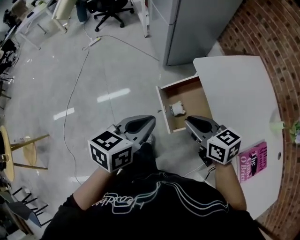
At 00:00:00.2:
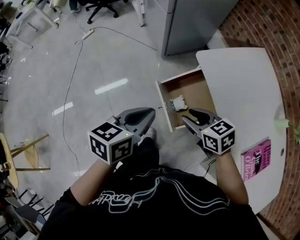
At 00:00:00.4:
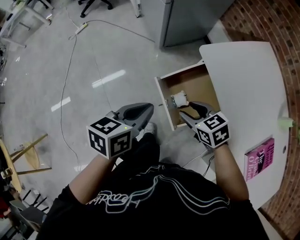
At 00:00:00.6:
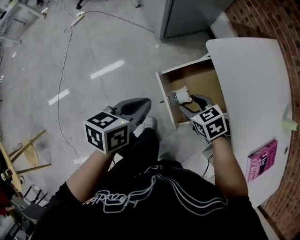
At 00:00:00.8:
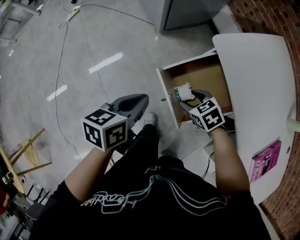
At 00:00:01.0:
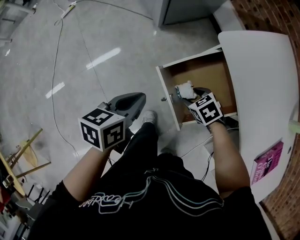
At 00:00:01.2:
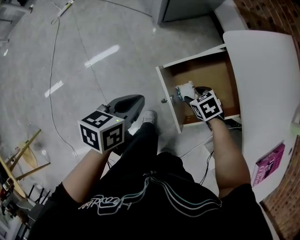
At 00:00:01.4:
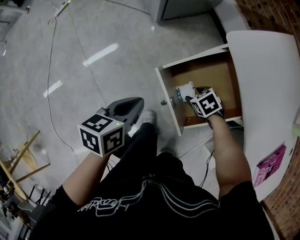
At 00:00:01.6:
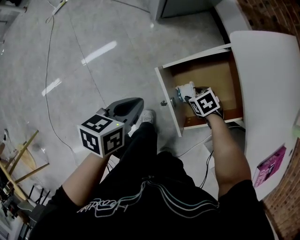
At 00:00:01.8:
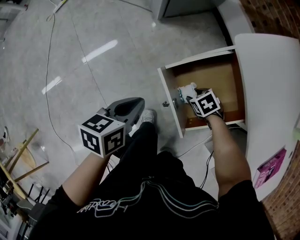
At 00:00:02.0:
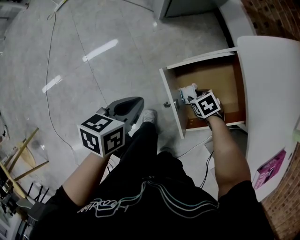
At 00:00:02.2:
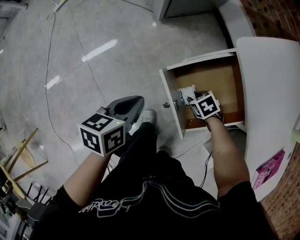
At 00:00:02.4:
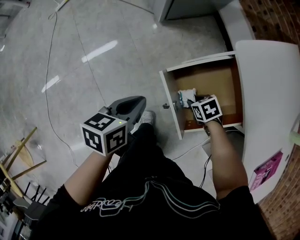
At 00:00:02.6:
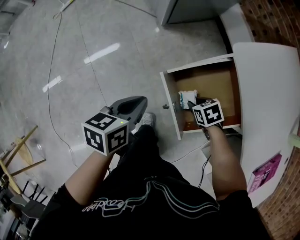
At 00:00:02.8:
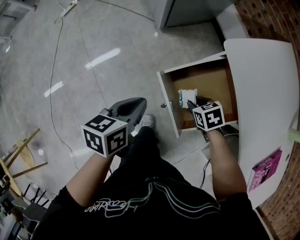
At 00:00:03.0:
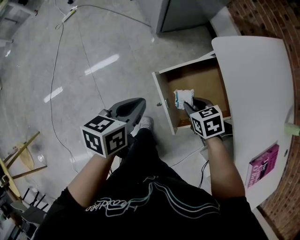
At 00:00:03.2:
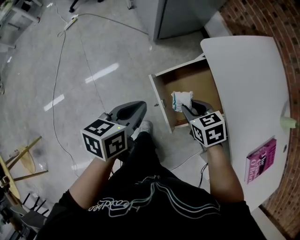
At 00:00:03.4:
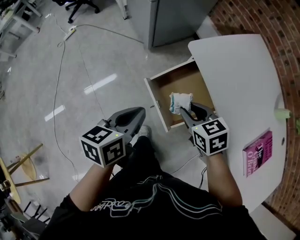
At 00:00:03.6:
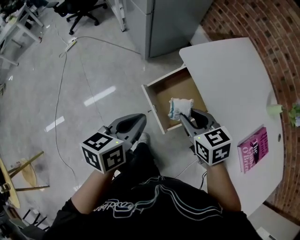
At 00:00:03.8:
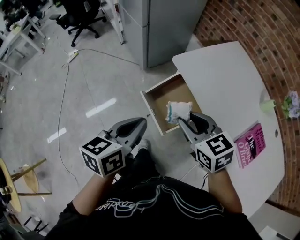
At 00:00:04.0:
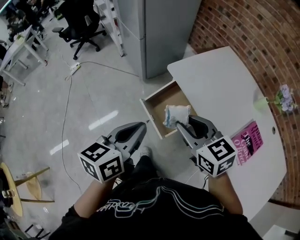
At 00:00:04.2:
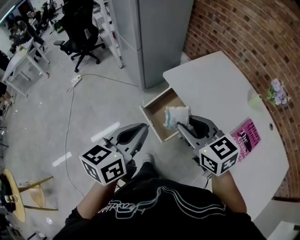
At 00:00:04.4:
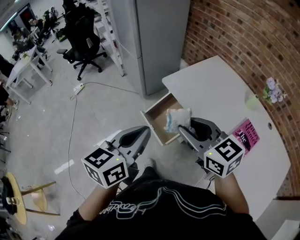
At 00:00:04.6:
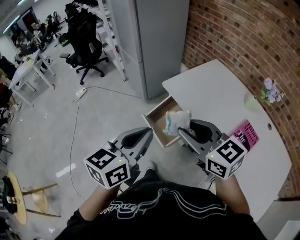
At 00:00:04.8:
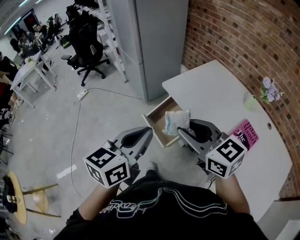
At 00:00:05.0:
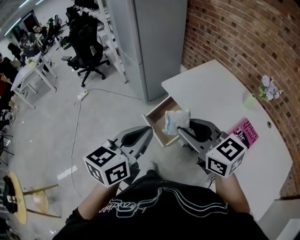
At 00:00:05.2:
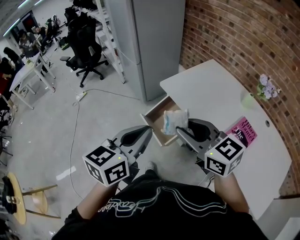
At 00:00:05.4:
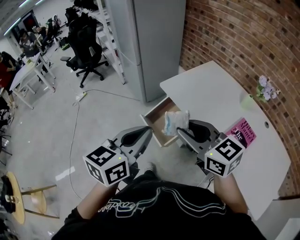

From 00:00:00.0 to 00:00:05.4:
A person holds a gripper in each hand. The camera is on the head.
From 00:00:00.0 to 00:00:01.4: Both grippers travel together downward, roughly 35 cm. The right gripper tilts its fingers approximately 50 degrees downward, and opens, while the left gripper rotates about 20 degrees.
From 00:00:01.4 to 00:00:02.8: The right gripper moves upward, approximately 5 cm, and closes.
From 00:00:02.8 to 00:00:04.0: The right gripper shifts about 40 cm upward, and tips its fingers upward by some 40 degrees; the left gripper goes about 35 cm upward and backward, and swivels about 20 degrees.
From 00:00:04.0 to 00:00:05.4: The right gripper heads backward and upward, covering some 15 cm; the left gripper heads upward, backward and to the right, covering approximately 15 cm.

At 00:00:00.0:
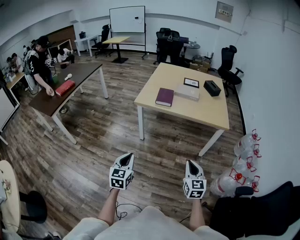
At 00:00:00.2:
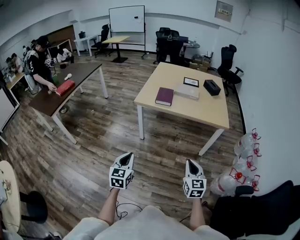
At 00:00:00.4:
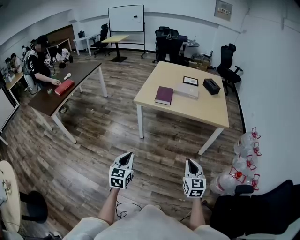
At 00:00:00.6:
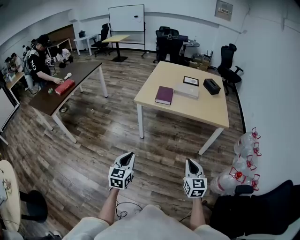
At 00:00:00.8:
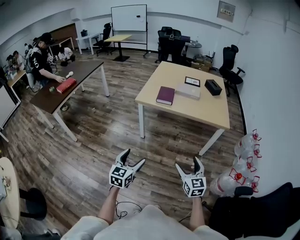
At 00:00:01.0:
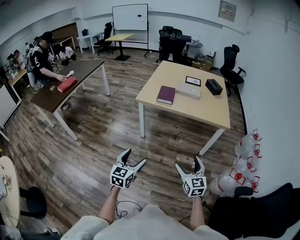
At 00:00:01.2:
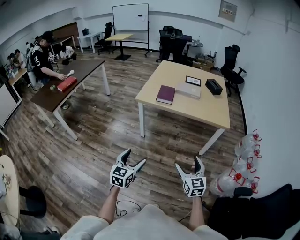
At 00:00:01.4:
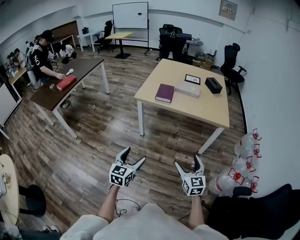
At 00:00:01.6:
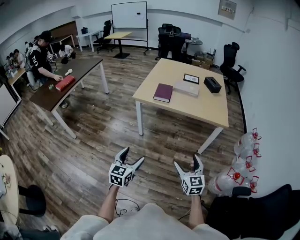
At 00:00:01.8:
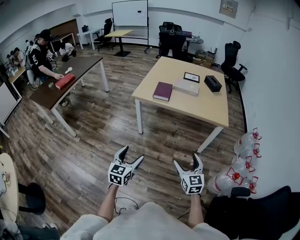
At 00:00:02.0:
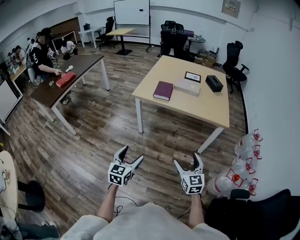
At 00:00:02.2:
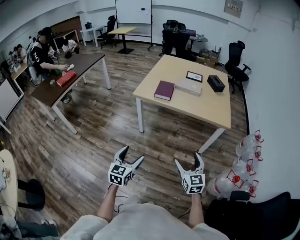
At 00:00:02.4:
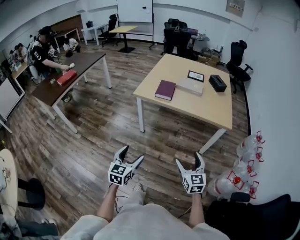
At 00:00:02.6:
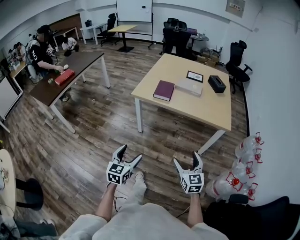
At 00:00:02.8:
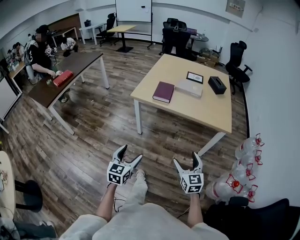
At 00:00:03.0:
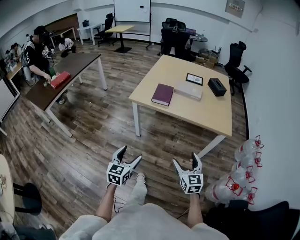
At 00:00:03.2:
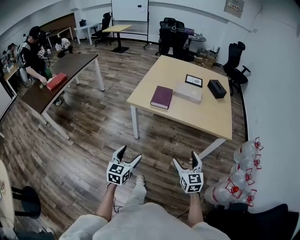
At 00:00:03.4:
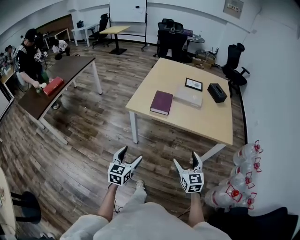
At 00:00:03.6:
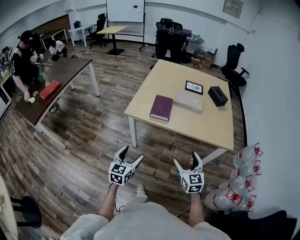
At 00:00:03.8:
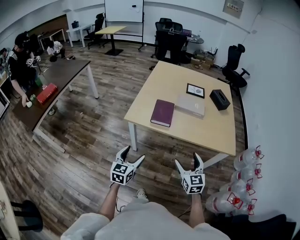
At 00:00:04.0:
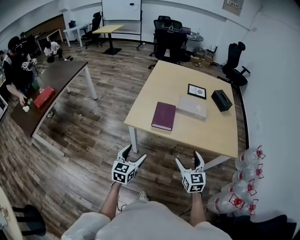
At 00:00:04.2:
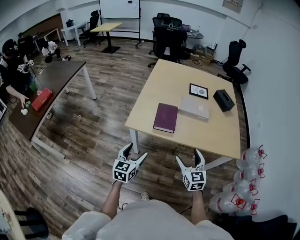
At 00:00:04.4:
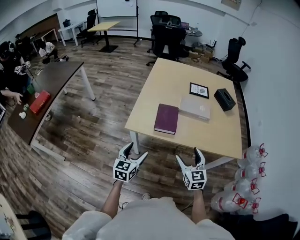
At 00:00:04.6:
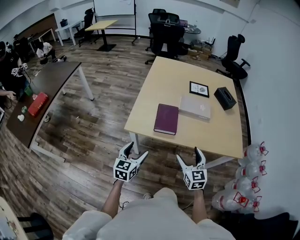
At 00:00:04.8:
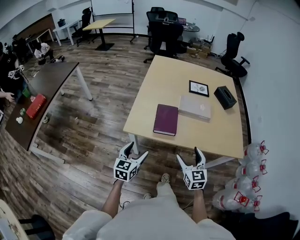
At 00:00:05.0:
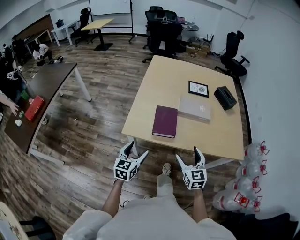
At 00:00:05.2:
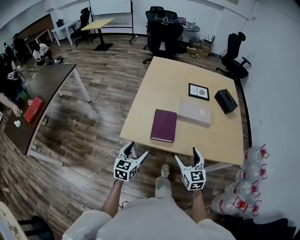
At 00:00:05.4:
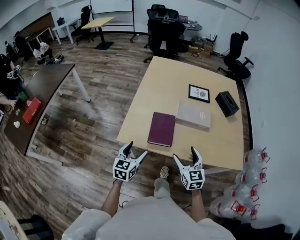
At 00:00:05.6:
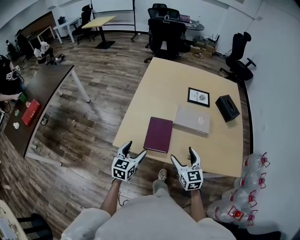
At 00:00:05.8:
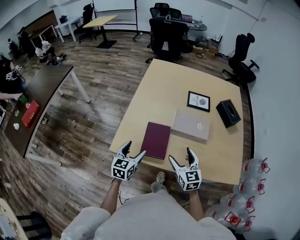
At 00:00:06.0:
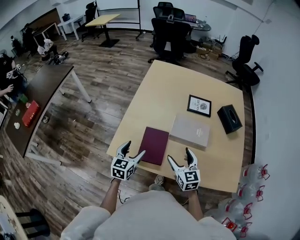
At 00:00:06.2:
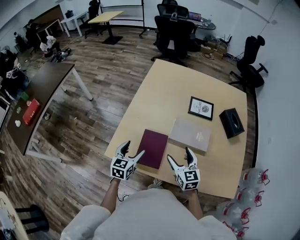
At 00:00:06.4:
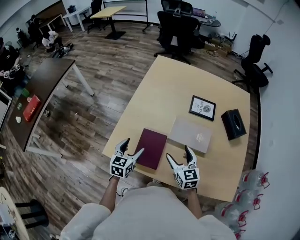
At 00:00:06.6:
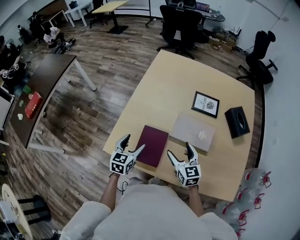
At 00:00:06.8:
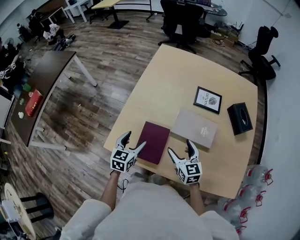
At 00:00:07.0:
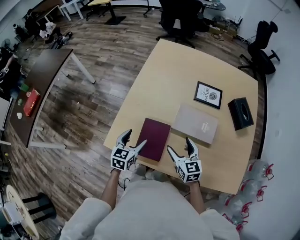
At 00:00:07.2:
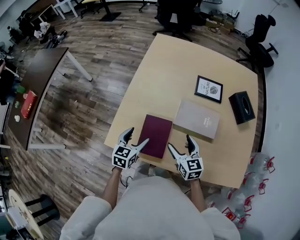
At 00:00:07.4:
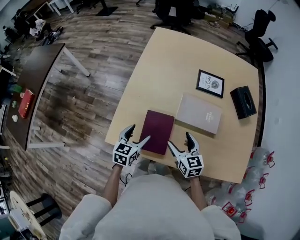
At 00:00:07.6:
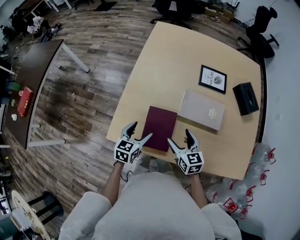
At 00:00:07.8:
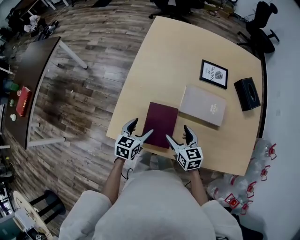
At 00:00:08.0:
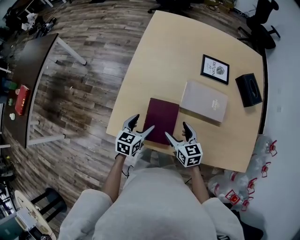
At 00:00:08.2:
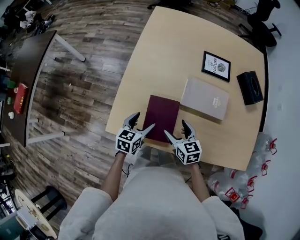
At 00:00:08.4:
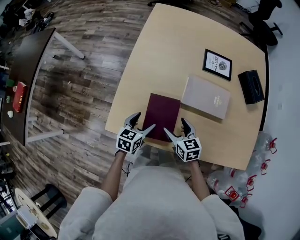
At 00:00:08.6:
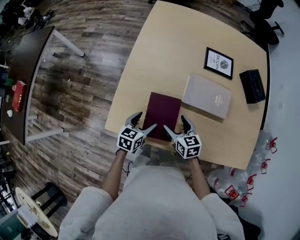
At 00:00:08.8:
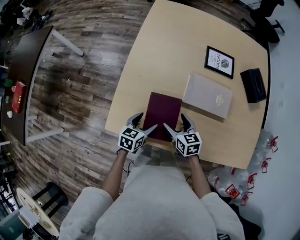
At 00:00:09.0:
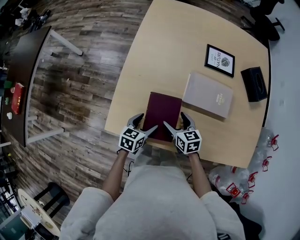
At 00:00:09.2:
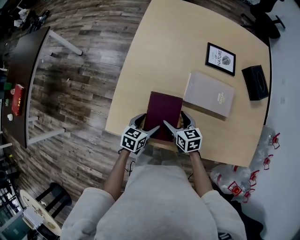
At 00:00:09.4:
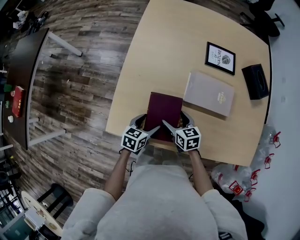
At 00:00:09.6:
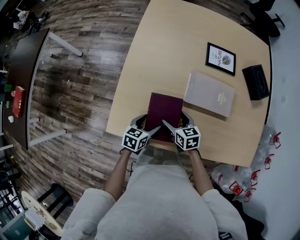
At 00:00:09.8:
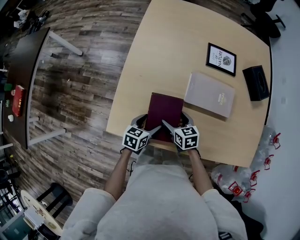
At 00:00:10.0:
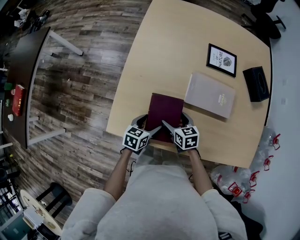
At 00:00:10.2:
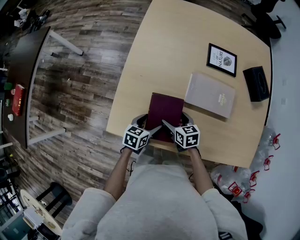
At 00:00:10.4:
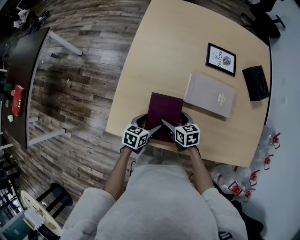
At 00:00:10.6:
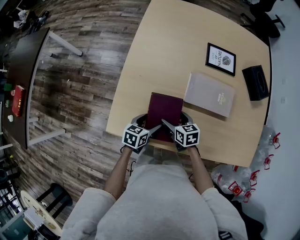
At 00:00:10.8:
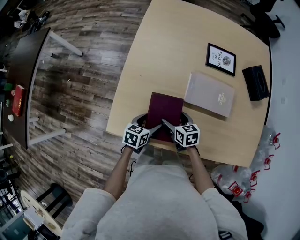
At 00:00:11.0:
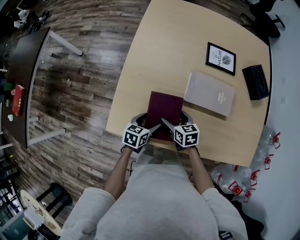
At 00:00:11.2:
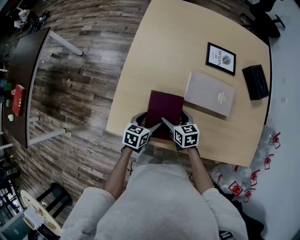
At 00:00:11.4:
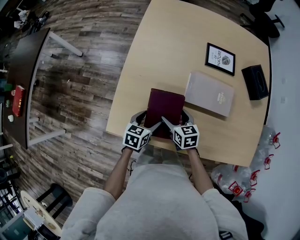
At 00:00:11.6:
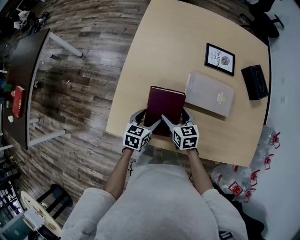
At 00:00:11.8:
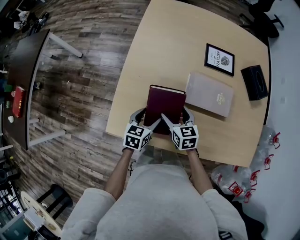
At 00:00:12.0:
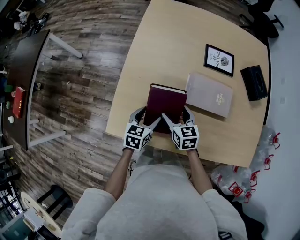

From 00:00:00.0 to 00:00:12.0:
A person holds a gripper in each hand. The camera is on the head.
From 00:00:00.0 to 00:00:01.6: The left gripper moves to the right, about 5 cm, and opens up. Meanwhile the right gripper opens its fingers.
From 00:00:01.6 to 00:00:03.0: Both grippers travel together forward, approximately 10 cm.
From 00:00:03.0 to 00:00:04.4: Both grippers travel together forward, some 30 cm.
From 00:00:04.4 to 00:00:06.0: Both grippers move forward, some 25 cm.
From 00:00:06.0 to 00:00:07.6: Both grippers travel together downward, about 5 cm.
From 00:00:07.6 to 00:00:09.0: Both grippers move downward, roughly 10 cm.
From 00:00:09.0 to 00:00:10.4: The grippers move only a little.
From 00:00:10.4 to 00:00:12.0: The grippers both shift upward by about 5 cm.

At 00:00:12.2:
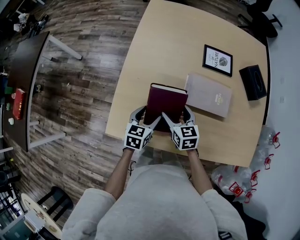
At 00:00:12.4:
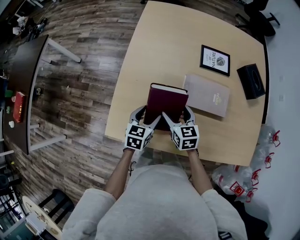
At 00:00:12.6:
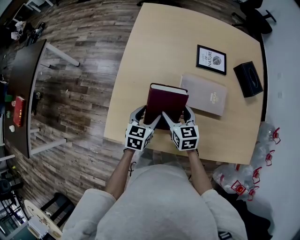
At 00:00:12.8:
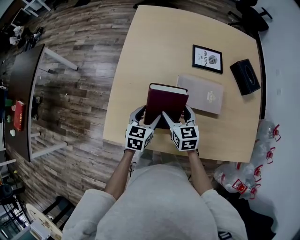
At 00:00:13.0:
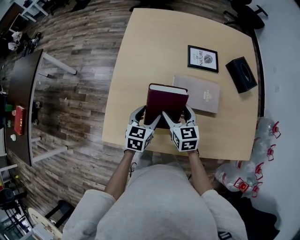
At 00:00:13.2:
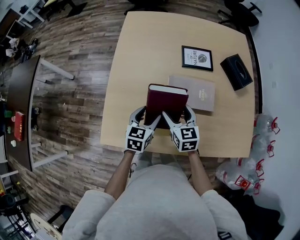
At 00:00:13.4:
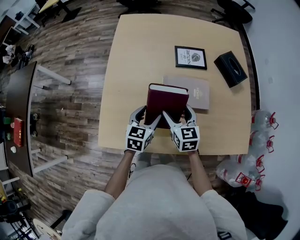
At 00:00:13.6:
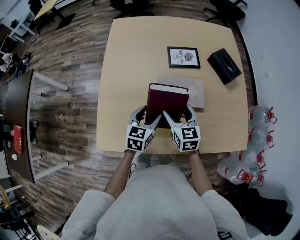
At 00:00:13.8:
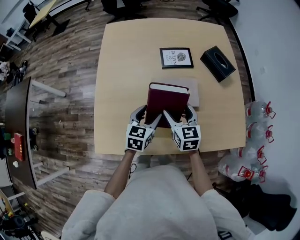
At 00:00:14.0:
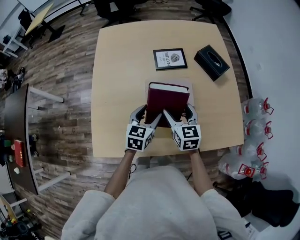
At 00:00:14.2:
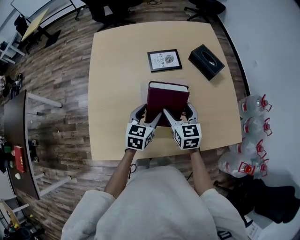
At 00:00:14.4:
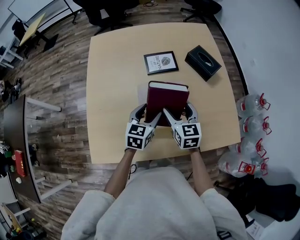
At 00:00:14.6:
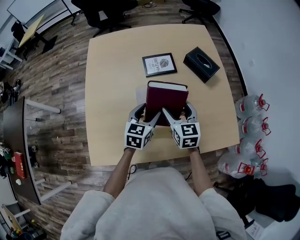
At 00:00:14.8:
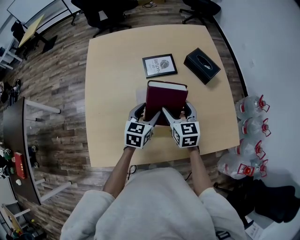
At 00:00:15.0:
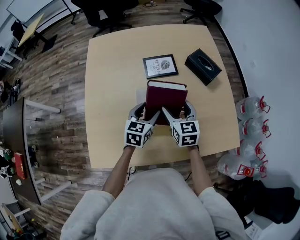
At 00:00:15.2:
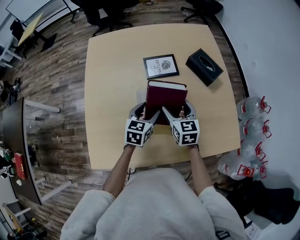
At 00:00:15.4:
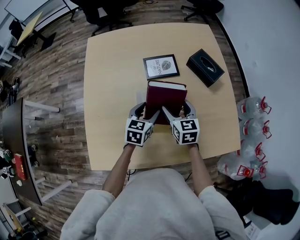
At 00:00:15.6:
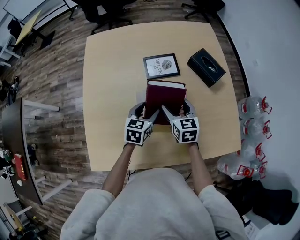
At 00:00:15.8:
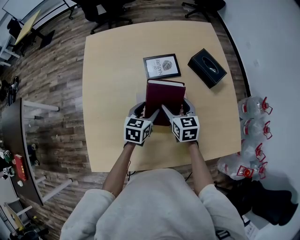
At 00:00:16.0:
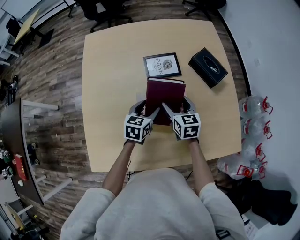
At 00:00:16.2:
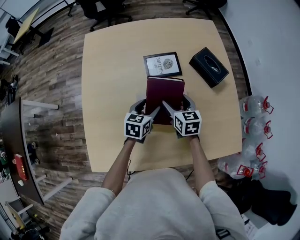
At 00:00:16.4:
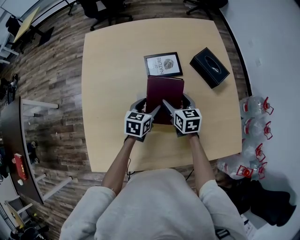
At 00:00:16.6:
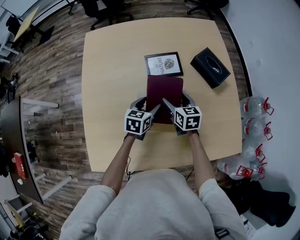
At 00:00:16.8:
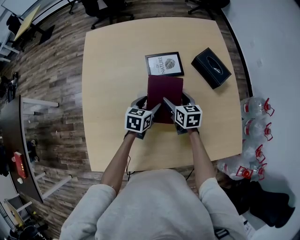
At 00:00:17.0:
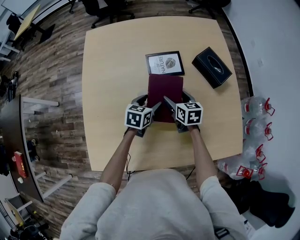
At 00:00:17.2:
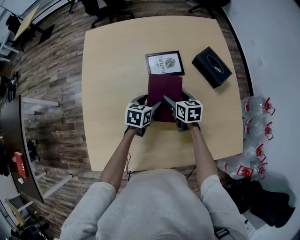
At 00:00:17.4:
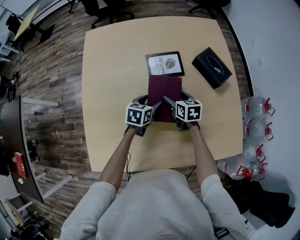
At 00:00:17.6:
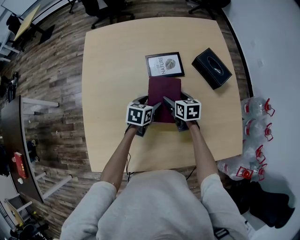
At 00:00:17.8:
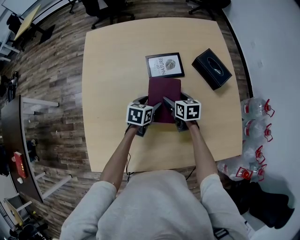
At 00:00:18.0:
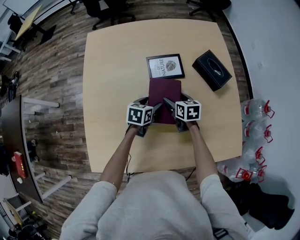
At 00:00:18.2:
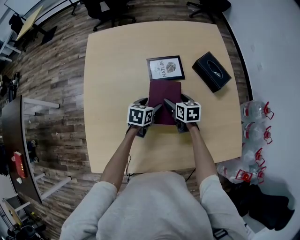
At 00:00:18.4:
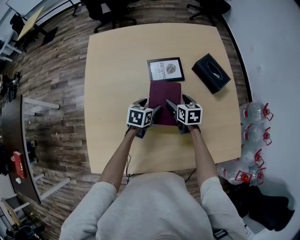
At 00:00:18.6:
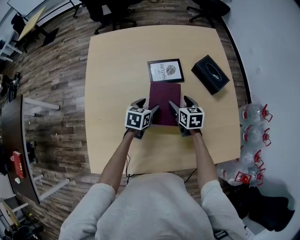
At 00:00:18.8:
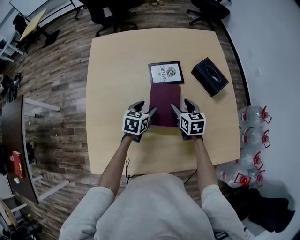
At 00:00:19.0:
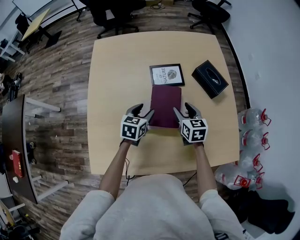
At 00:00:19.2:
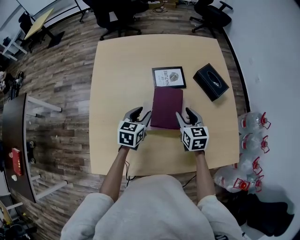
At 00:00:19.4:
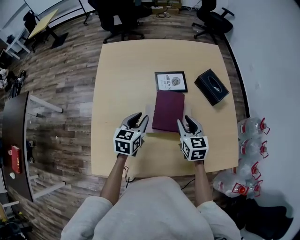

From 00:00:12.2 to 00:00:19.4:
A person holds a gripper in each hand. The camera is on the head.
From 00:00:12.2 to 00:00:13.6: The two grippers go some 15 cm to the right and upward.
From 00:00:13.6 to 00:00:15.0: The left gripper travels forward and to the right by roughly 10 cm. Meanwhile the right gripper goes roughly 10 cm to the right and forward.
From 00:00:15.0 to 00:00:16.6: The grippers both shift downward and forward by approximately 10 cm.
From 00:00:16.6 to 00:00:18.0: The right gripper moves about 5 cm.
From 00:00:18.0 to 00:00:19.4: The right gripper goes approximately 15 cm upward and backward, swivels some 20 degrees, and closes, while the left gripper heads upward, to the left and backward, covering roughly 15 cm, swivels roughly 20 degrees, and closes its fingers.
